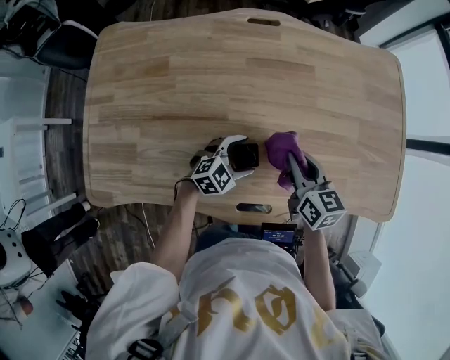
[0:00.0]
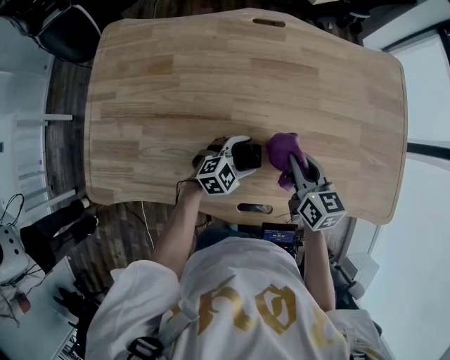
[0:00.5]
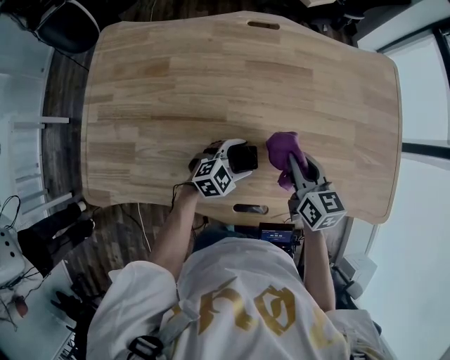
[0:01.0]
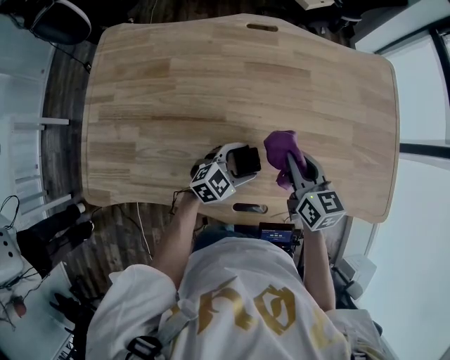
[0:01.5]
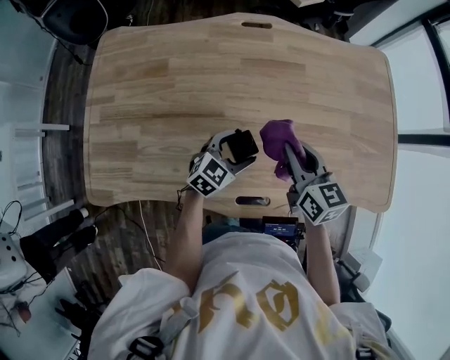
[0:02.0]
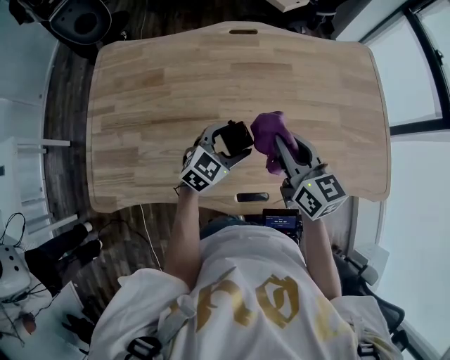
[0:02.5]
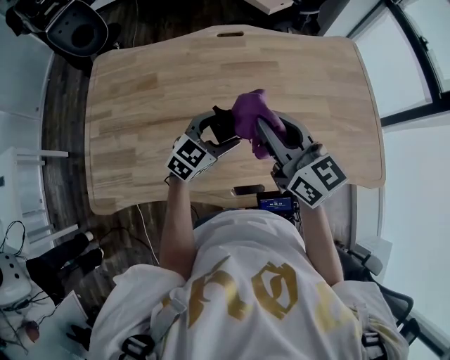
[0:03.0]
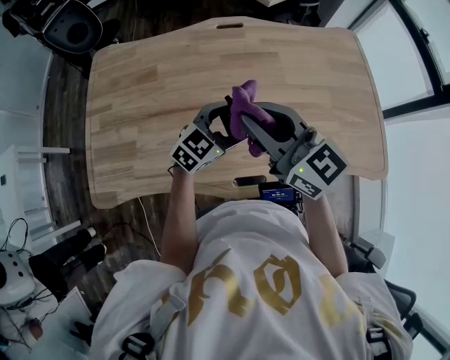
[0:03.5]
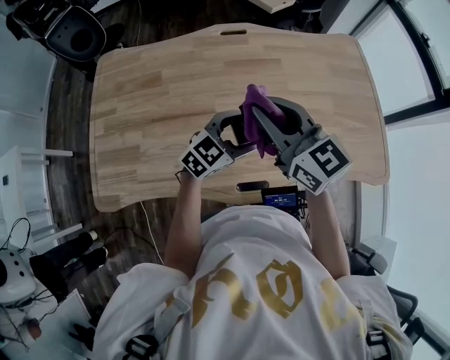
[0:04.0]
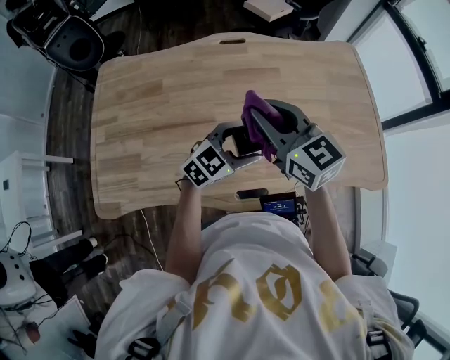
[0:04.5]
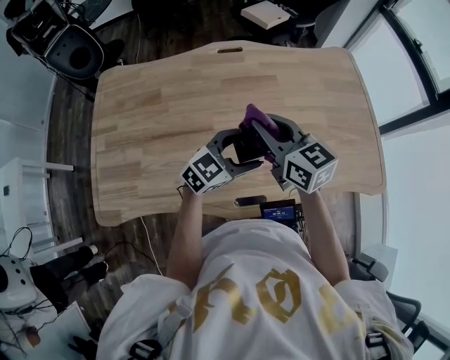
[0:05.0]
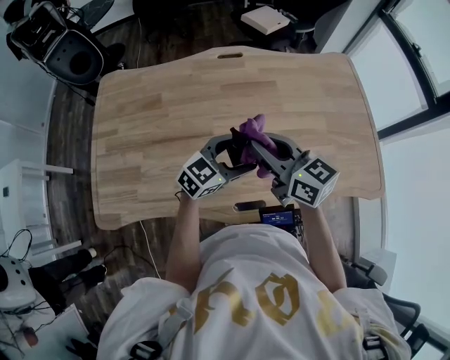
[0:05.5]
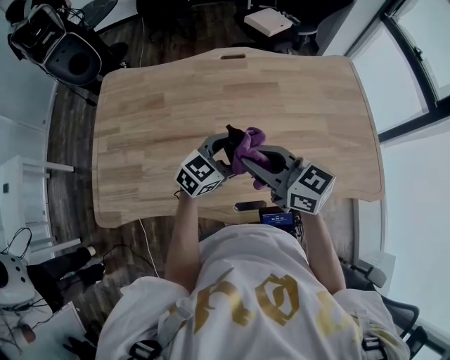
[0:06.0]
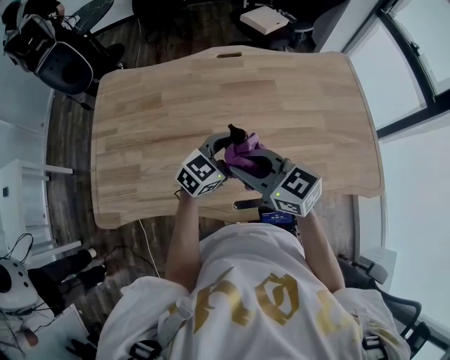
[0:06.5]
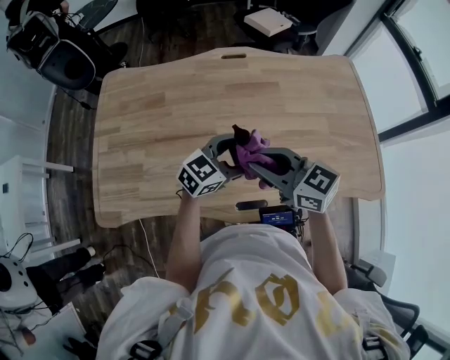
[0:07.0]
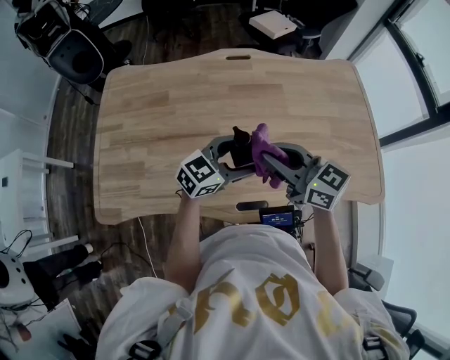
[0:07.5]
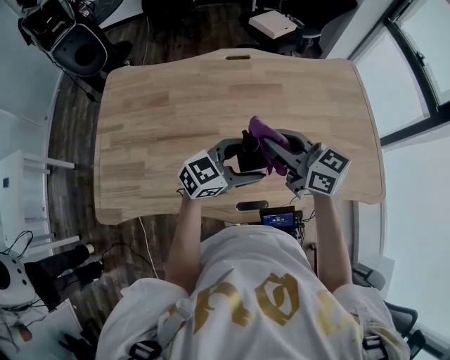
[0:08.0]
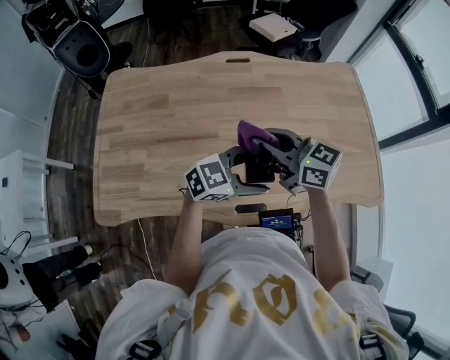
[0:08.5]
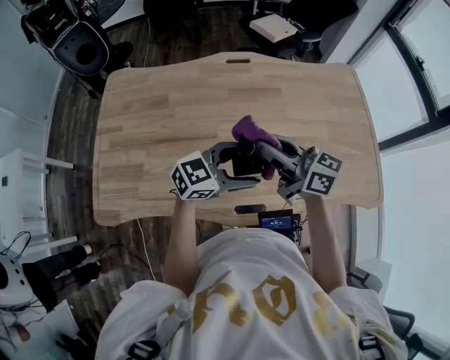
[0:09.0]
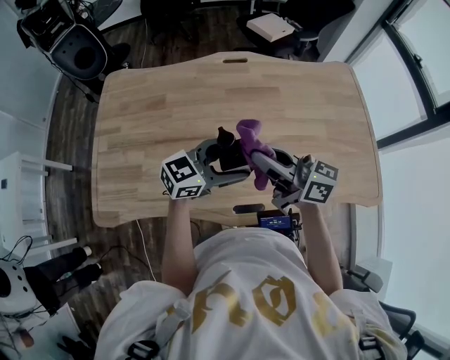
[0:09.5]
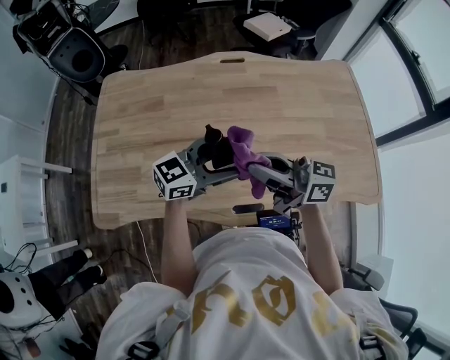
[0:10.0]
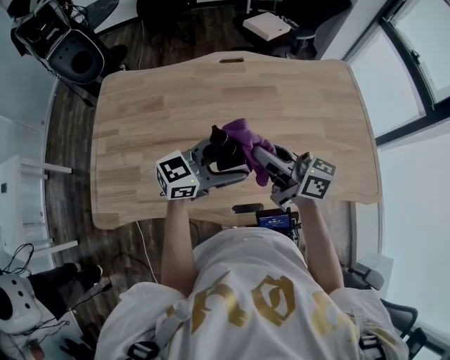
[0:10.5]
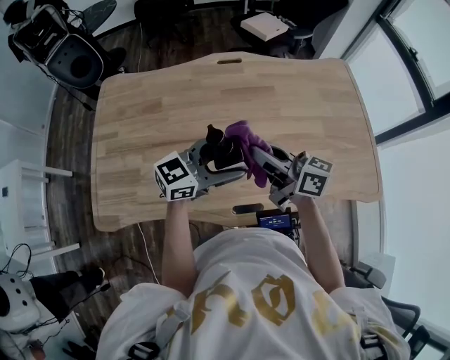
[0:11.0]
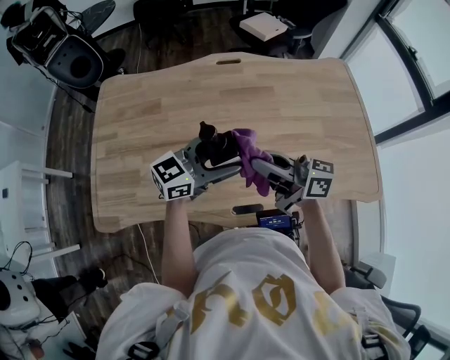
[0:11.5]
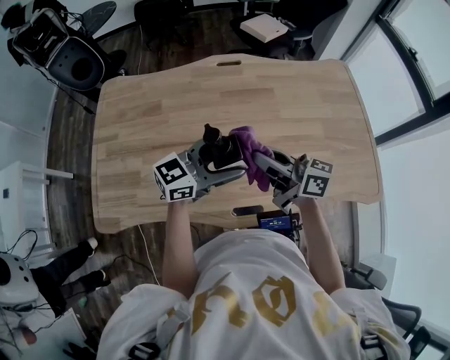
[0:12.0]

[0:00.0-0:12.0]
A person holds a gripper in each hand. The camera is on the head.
0:00.0 to 0:02.0: The grippers both shift upward by about 5 cm.
0:02.0 to 0:04.0: The two grippers go approximately 15 cm upward. The right gripper swivels some 30 degrees.
0:04.0 to 0:06.0: The right gripper moves roughly 5 cm.
0:06.0 to 0:08.0: The left gripper changes place by some 5 cm; the right gripper changes place by some 5 cm.
0:08.0 to 0:10.0: The right gripper ends up some 5 cm from where it was, and swivels about 30 degrees, while the left gripper moves roughly 5 cm.
0:10.0 to 0:12.0: The right gripper moves approximately 5 cm.

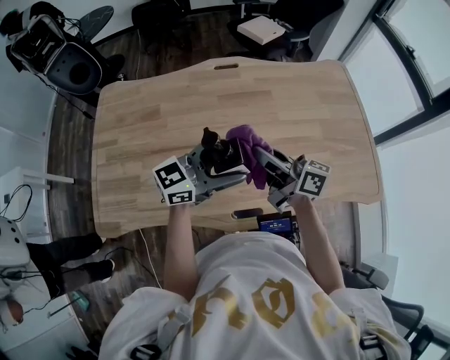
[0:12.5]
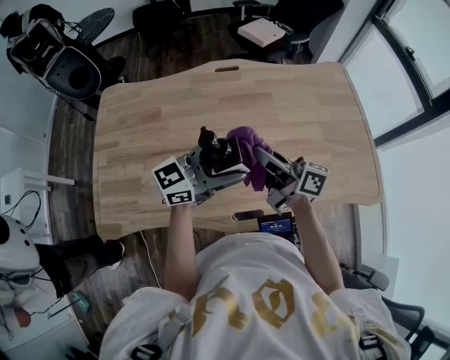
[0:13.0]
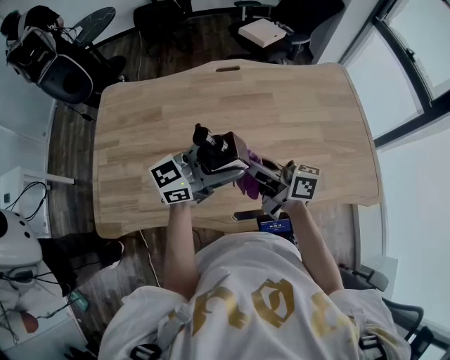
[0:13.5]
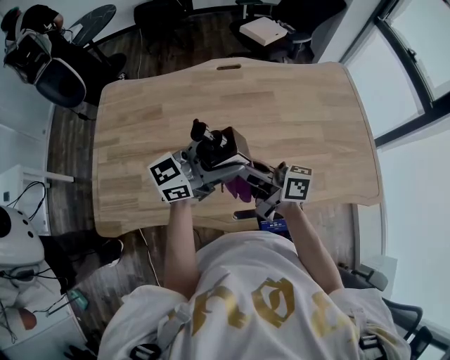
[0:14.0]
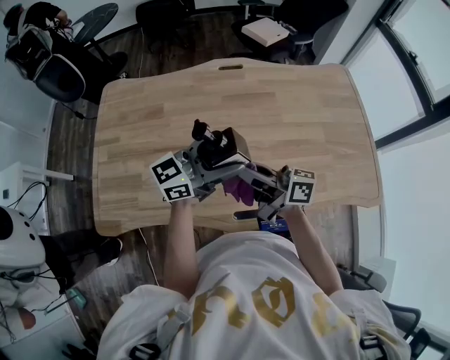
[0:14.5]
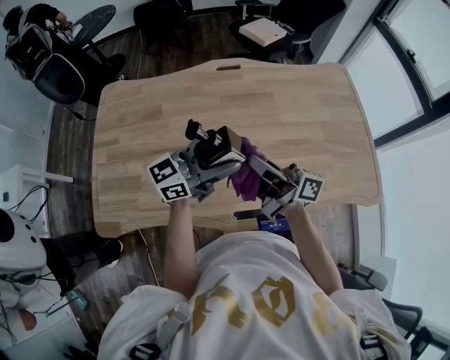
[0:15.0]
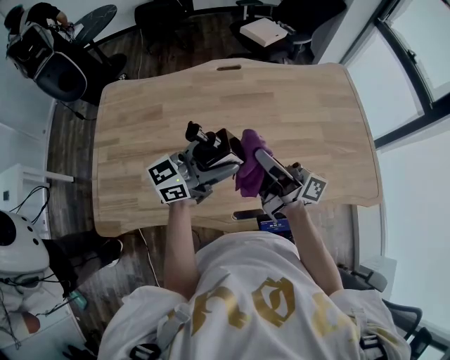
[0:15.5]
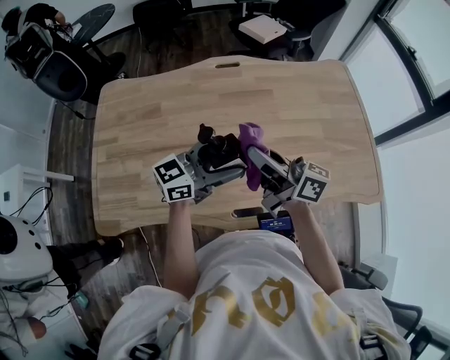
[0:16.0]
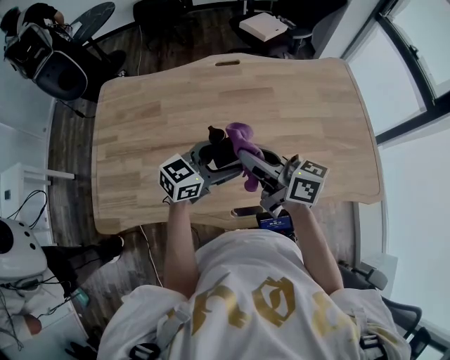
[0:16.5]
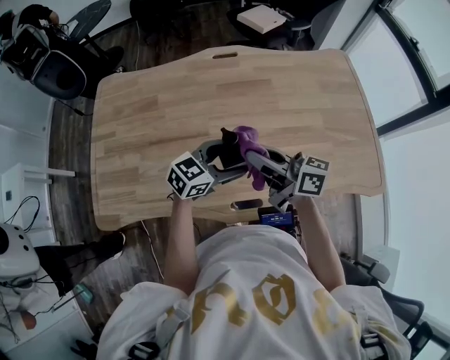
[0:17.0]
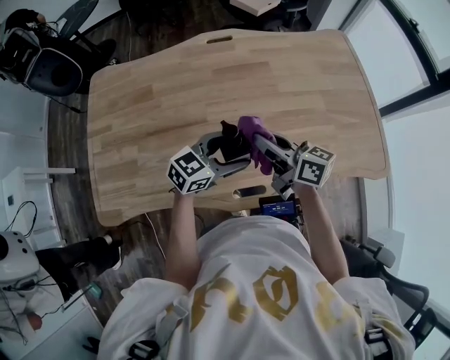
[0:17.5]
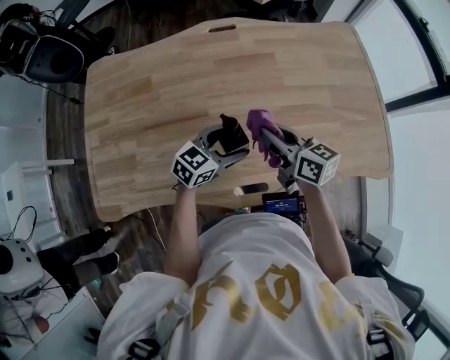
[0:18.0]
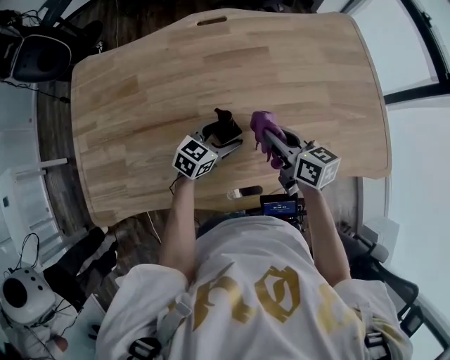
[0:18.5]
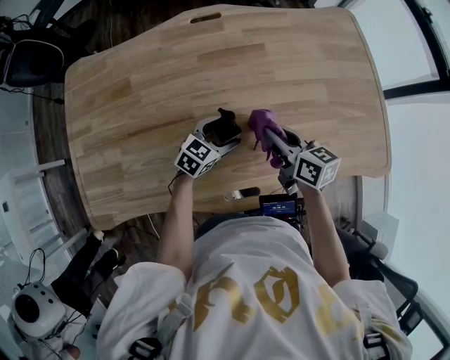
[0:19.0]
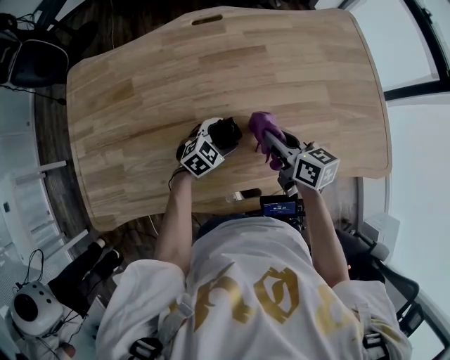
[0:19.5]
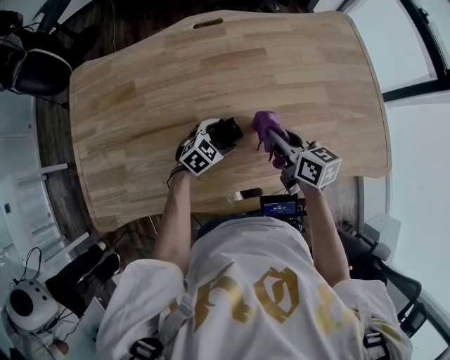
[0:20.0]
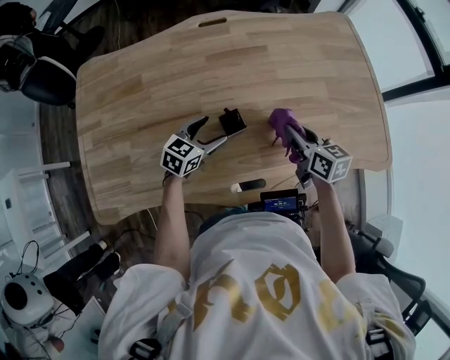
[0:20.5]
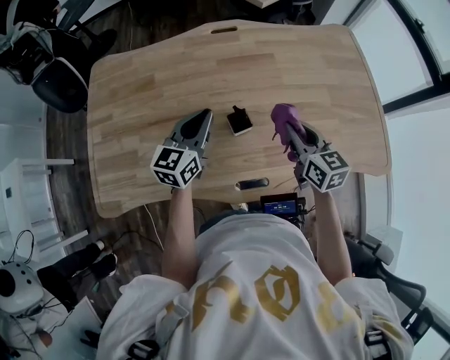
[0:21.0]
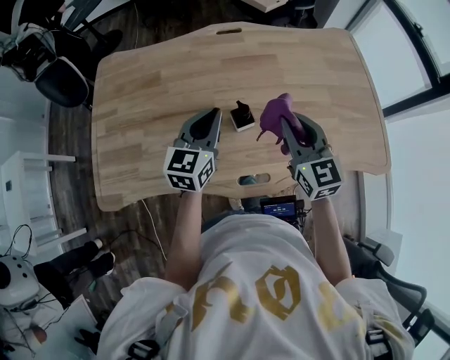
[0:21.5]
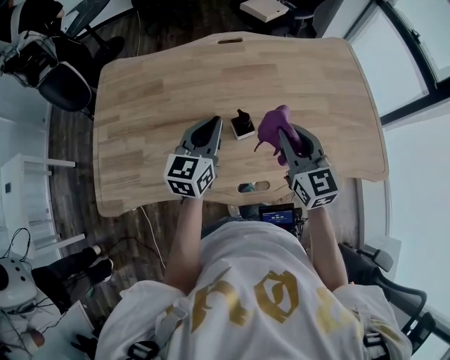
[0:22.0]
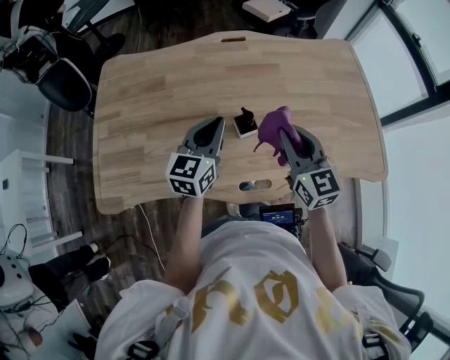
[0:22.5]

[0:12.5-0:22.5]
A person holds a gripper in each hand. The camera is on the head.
0:12.5 to 0:14.5: The right gripper shifts by some 5 cm.
0:14.5 to 0:16.5: The left gripper is displaced downward by some 10 cm, and changes its angle by approximately 20 degrees.
0:16.5 to 0:18.5: The left gripper heads downward, covering some 15 cm, while the right gripper heads downward and to the right, covering roughly 20 cm, and swivels about 30 degrees.
0:18.5 to 0:20.5: The right gripper travels to the right by about 5 cm. The left gripper travels to the left by roughly 5 cm.
0:20.5 to 0:22.5: The right gripper shifts about 15 cm upward and to the left, and rotates roughly 30 degrees. The left gripper shifts approximately 20 cm upward, swivels some 30 degrees, and closes up.

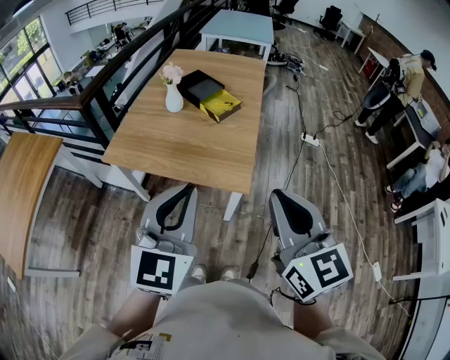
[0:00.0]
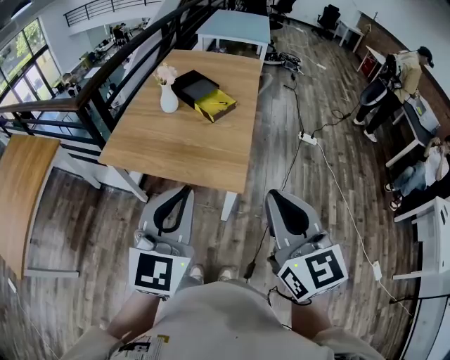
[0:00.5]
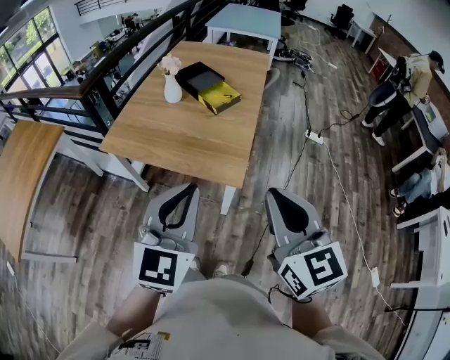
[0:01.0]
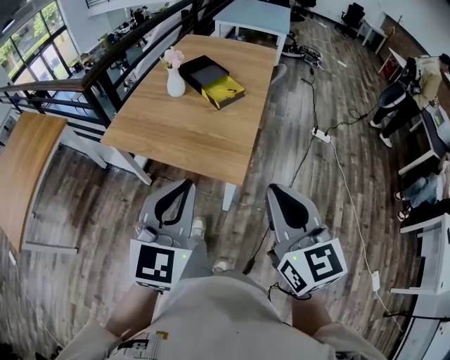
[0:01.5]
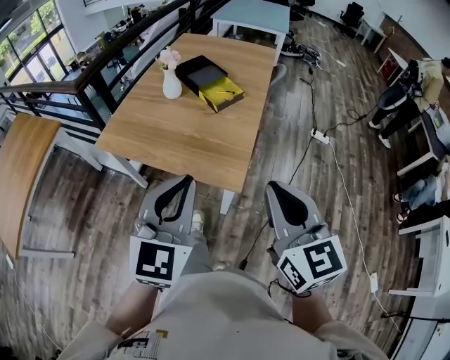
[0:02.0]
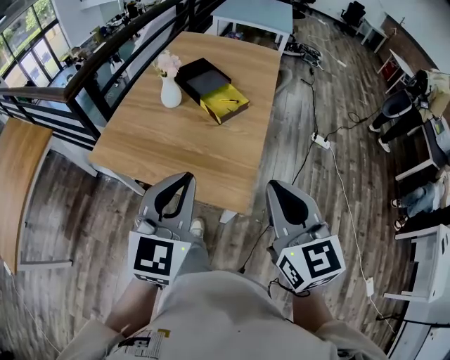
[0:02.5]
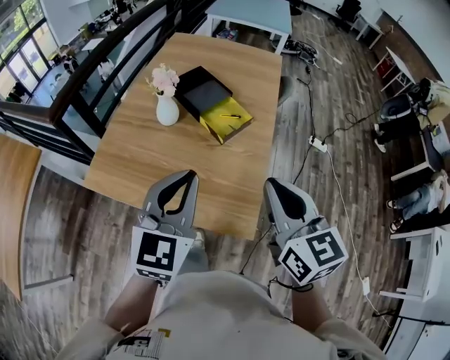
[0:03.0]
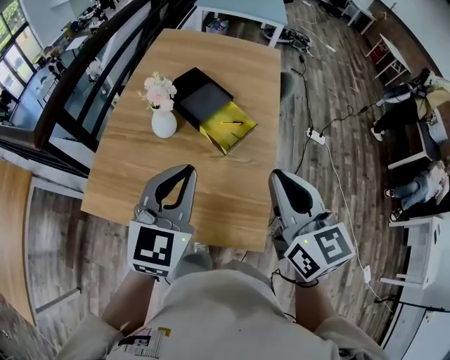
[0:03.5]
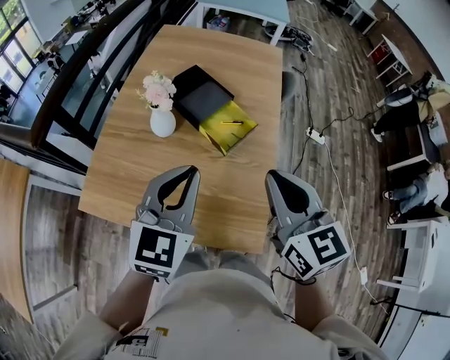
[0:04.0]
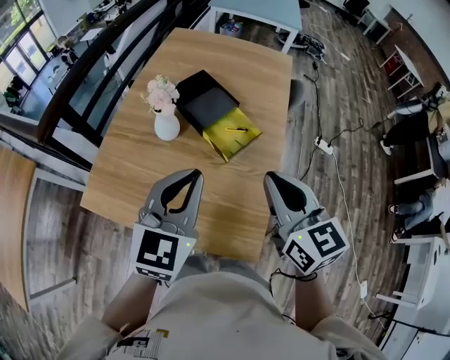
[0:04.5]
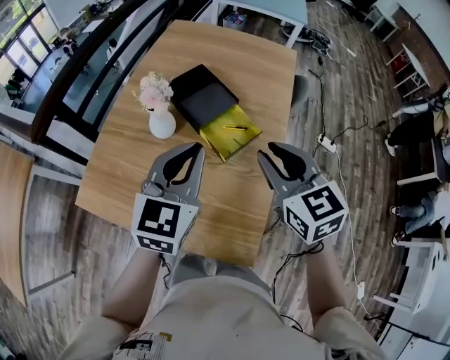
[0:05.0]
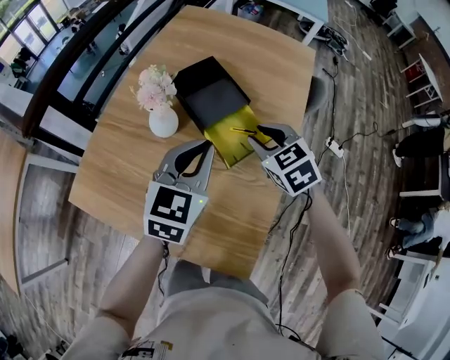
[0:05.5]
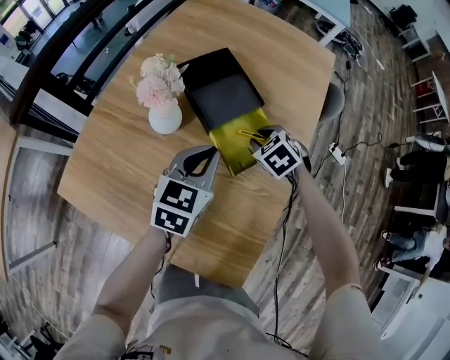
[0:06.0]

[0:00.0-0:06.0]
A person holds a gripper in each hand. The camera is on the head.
0:00.0 to 0:02.0: The right gripper goes roughly 10 cm forward, to the right and downward; the left gripper moves to the right, forward and downward, about 10 cm.
0:02.0 to 0:04.0: The two grippers travel together, forward, some 40 cm.
0:04.0 to 0:06.0: The left gripper shifts about 30 cm downward and forward, and turns by some 20 degrees. Meanwhile the right gripper heads downward and forward, covering roughly 50 cm, tips its fingers downward by about 50 degrees, and opens.
